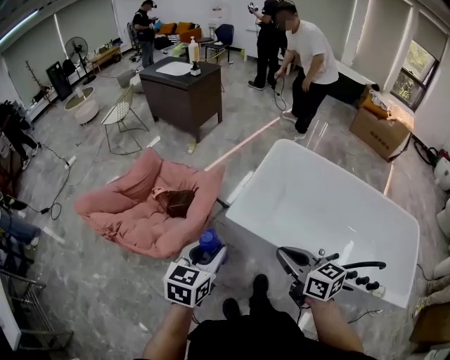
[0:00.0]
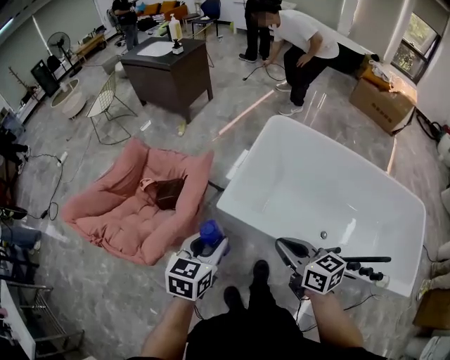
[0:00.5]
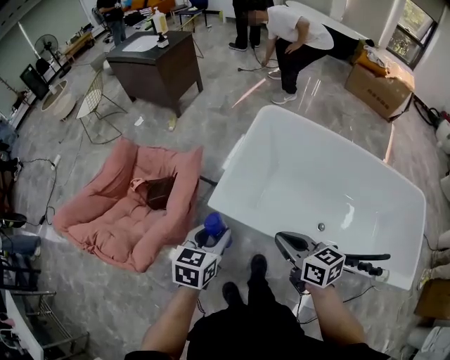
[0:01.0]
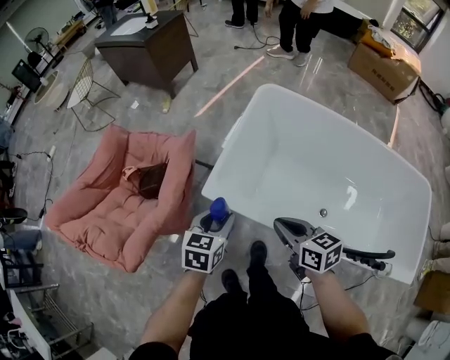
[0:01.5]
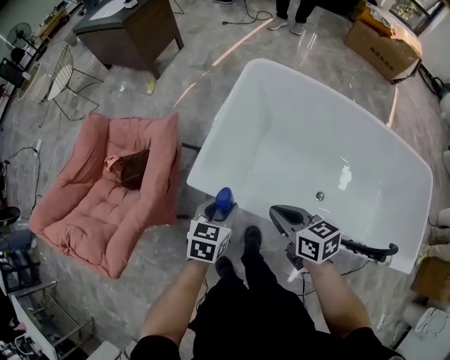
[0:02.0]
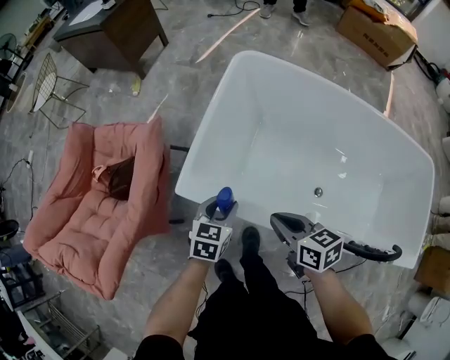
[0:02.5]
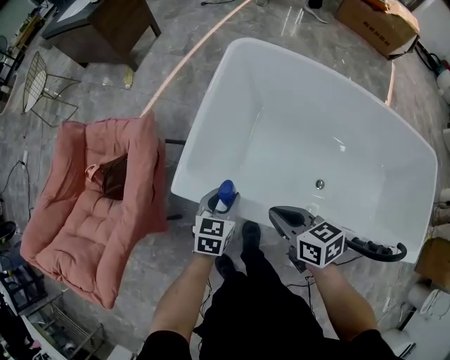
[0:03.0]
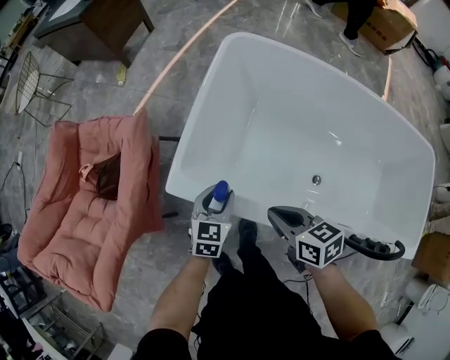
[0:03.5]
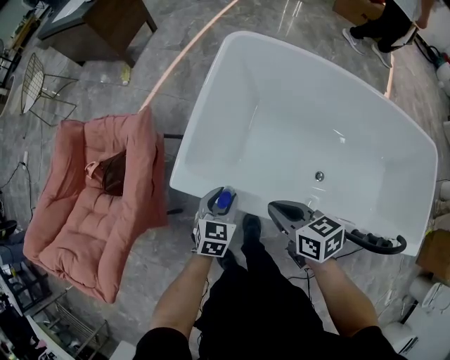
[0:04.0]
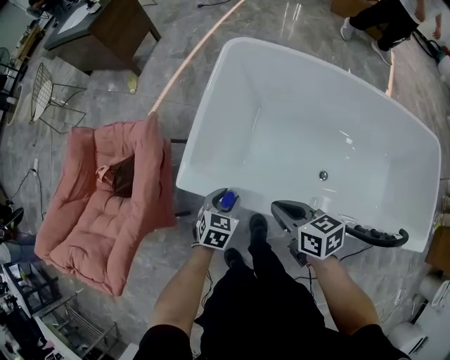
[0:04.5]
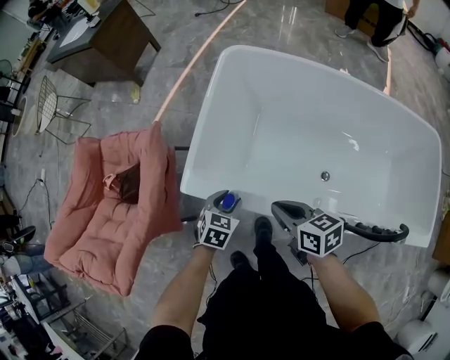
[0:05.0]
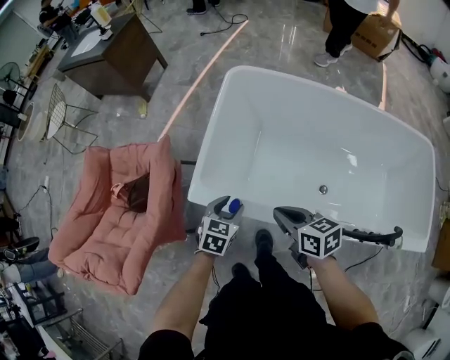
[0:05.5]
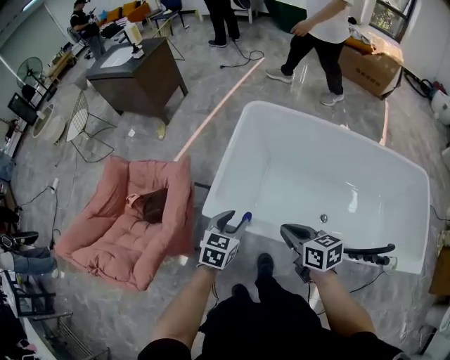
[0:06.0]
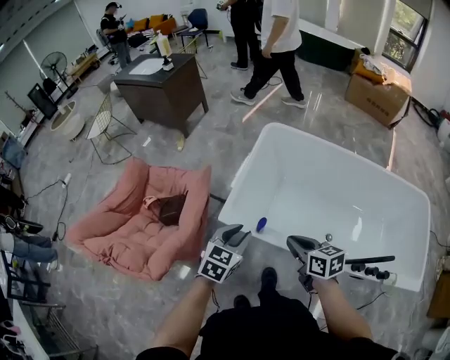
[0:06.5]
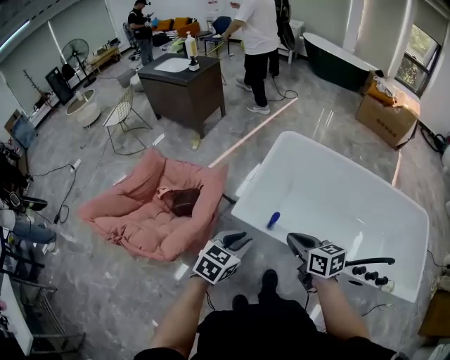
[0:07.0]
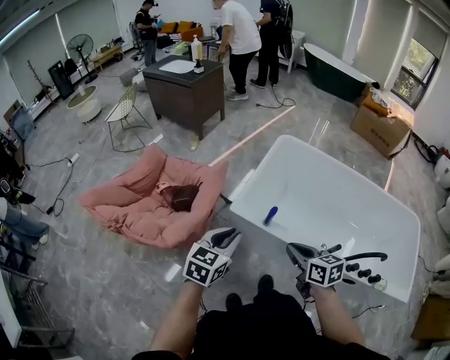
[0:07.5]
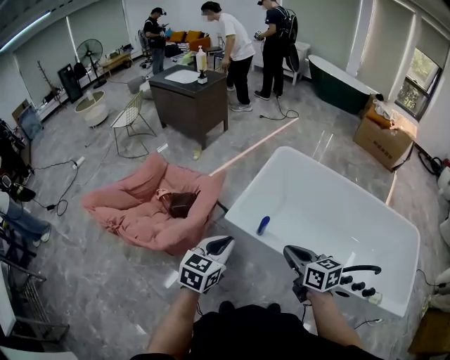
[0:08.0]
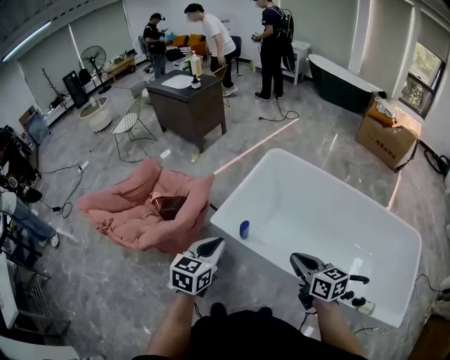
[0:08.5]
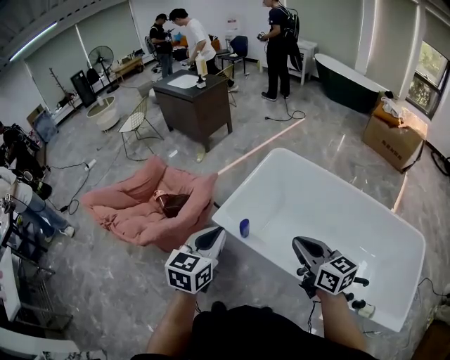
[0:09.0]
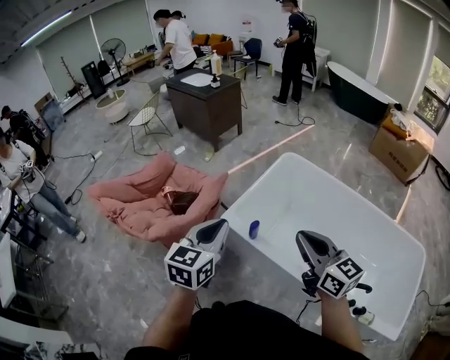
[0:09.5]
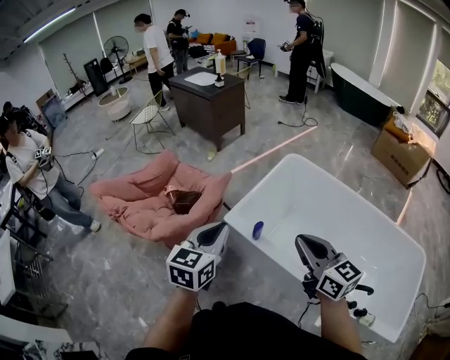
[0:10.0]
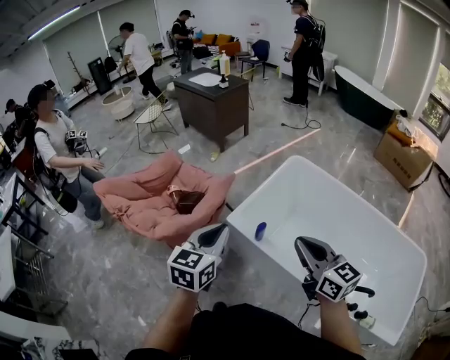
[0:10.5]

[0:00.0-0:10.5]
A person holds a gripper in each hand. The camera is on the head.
0:00.0 to 0:02.0: The right gripper goes roughly 25 cm downward, forward and to the right; the left gripper travels downward, to the right and forward by approximately 35 cm.
0:02.0 to 0:04.0: The left gripper is displaced downward by roughly 10 cm. The right gripper travels downward by about 5 cm.
0:04.0 to 0:06.5: The right gripper travels upward and backward by about 15 cm. The left gripper moves upward, roughly 25 cm.
0:06.5 to 0:08.5: The right gripper goes some 15 cm to the right, backward and upward, while the left gripper travels upward and backward by approximately 15 cm, changes its angle by about 20 degrees, and closes its fingers.
0:08.5 to 0:10.5: The left gripper moves upward, roughly 10 cm; the right gripper heads upward and to the left, covering some 15 cm, and swivels some 20 degrees.

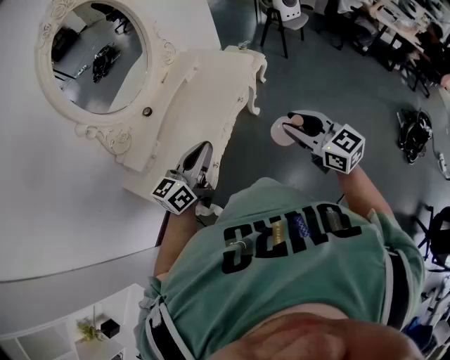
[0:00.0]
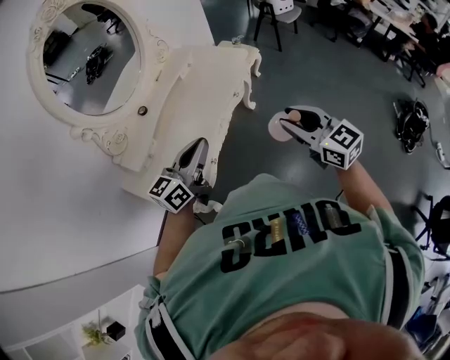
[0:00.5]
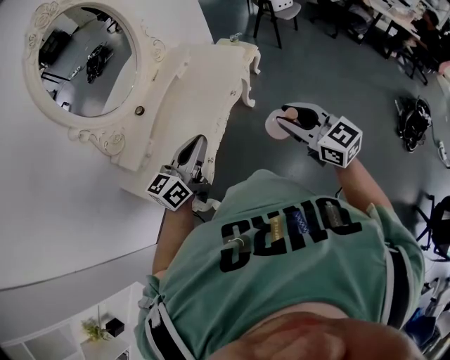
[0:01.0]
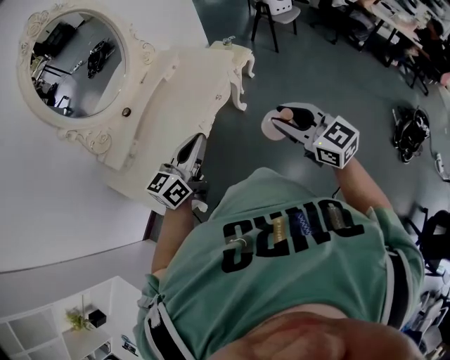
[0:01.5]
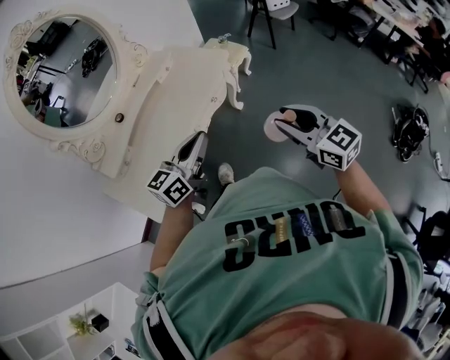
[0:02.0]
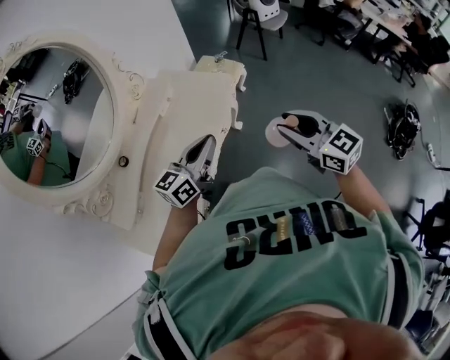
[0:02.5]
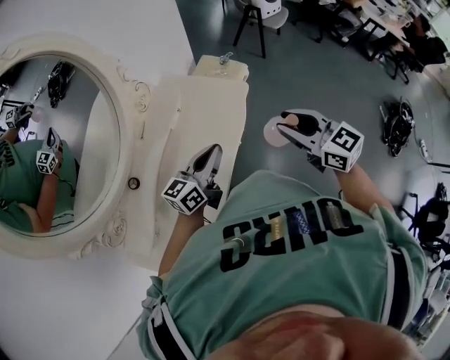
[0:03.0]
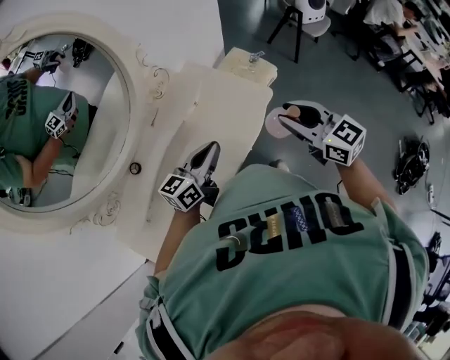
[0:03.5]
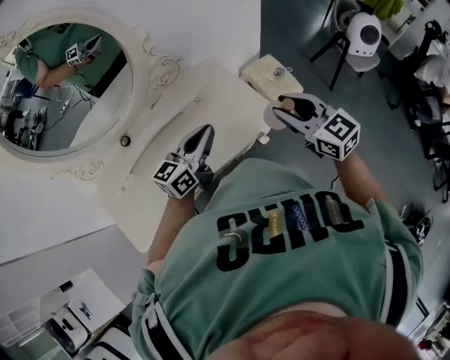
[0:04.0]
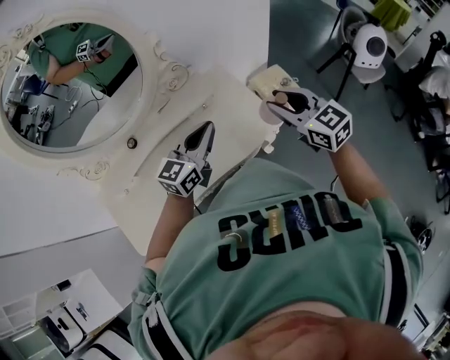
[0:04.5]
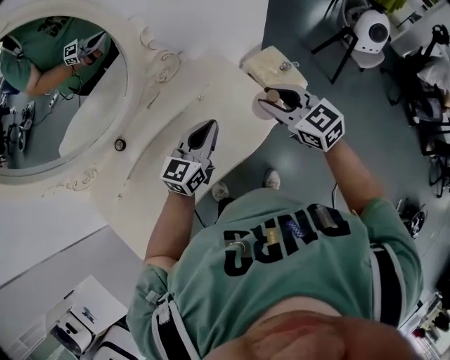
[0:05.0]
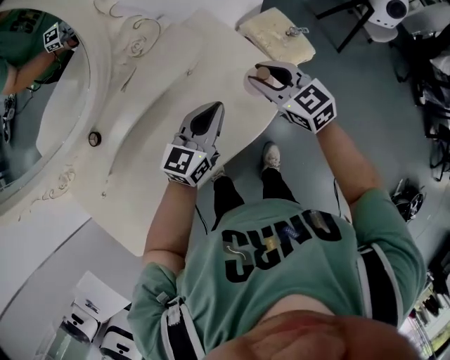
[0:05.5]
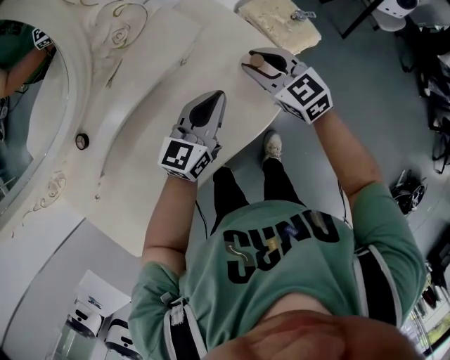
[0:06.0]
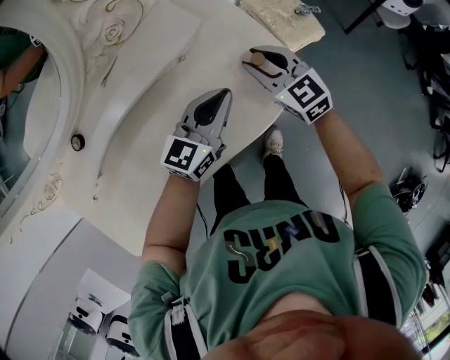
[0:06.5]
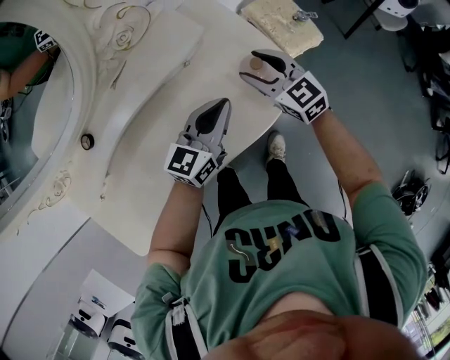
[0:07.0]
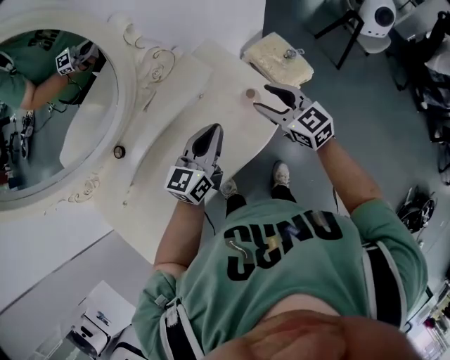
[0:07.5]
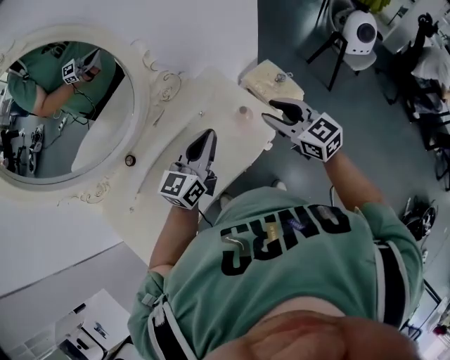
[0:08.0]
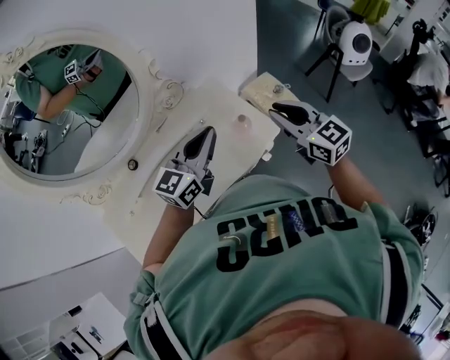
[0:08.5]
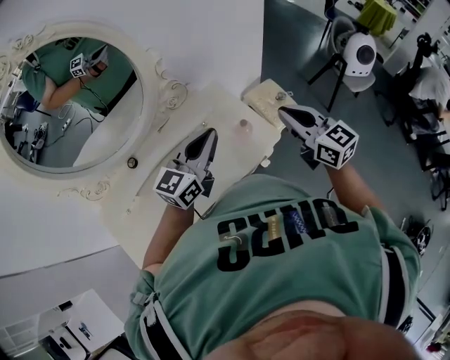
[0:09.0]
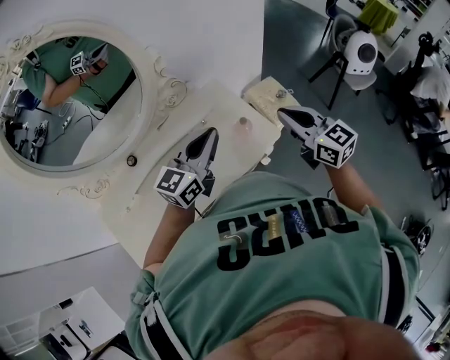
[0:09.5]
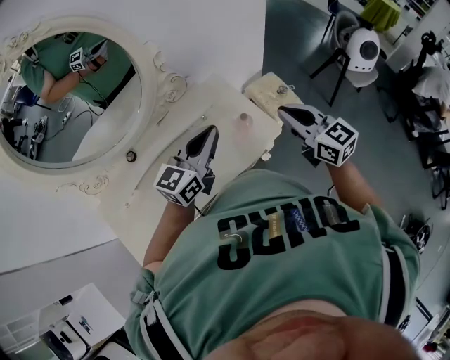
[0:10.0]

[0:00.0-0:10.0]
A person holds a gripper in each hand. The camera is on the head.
0:00.0 to 0:02.0: The left gripper heads to the right and forward, covering approximately 15 cm. The right gripper travels to the right by roughly 10 cm.
0:02.0 to 0:04.0: The pair of grippers is taken about 50 cm. The left gripper rotates some 20 degrees. Meanwhile the right gripper turns by some 20 degrees.
0:04.0 to 0:06.0: Both grippers move downward and forward, roughly 30 cm.
0:06.0 to 0:08.0: The left gripper heads upward, covering some 20 cm. The right gripper travels upward and backward by roughly 25 cm.
0:08.0 to 0:10.0: The right gripper heads upward, covering about 5 cm, and closes its fingers.

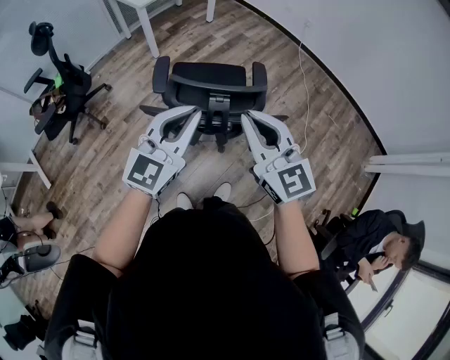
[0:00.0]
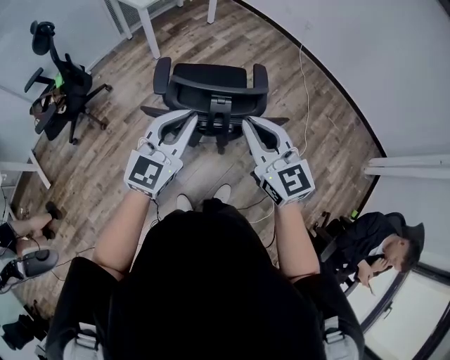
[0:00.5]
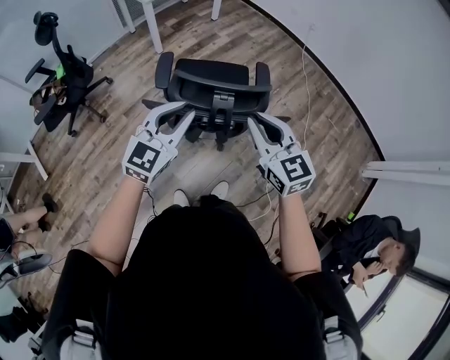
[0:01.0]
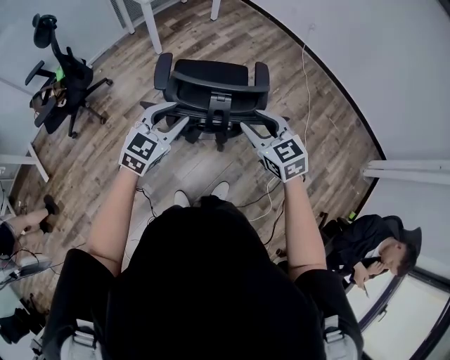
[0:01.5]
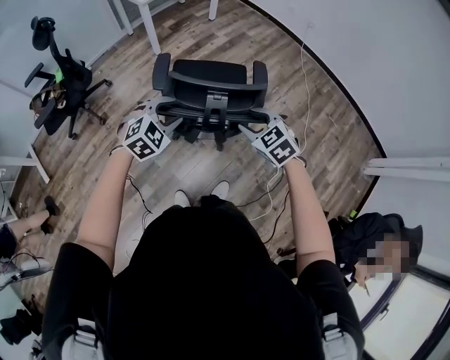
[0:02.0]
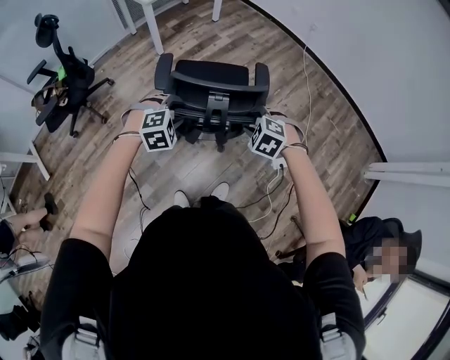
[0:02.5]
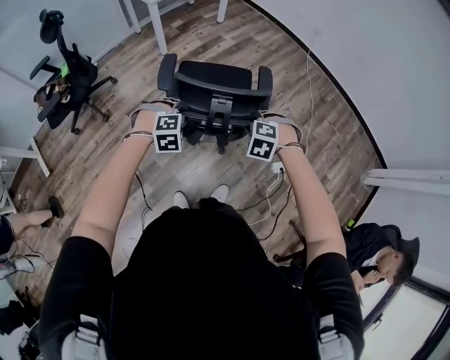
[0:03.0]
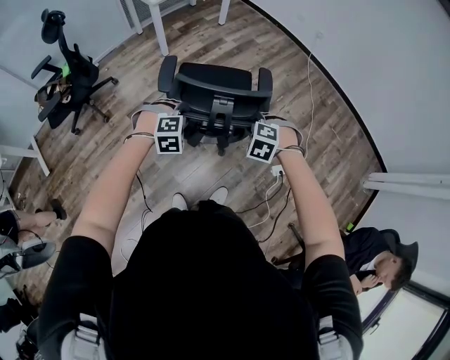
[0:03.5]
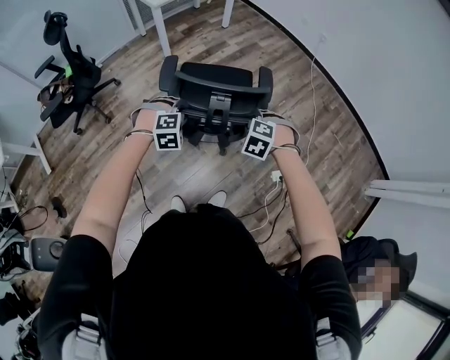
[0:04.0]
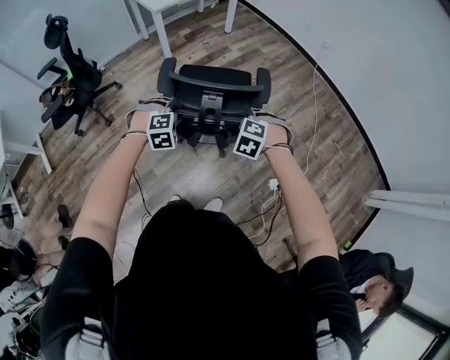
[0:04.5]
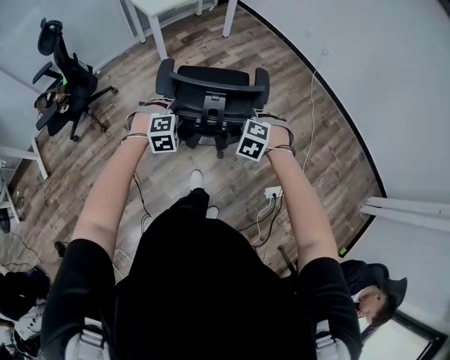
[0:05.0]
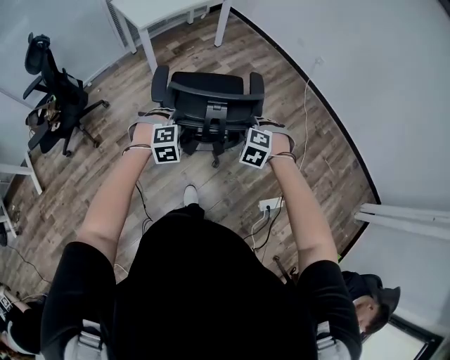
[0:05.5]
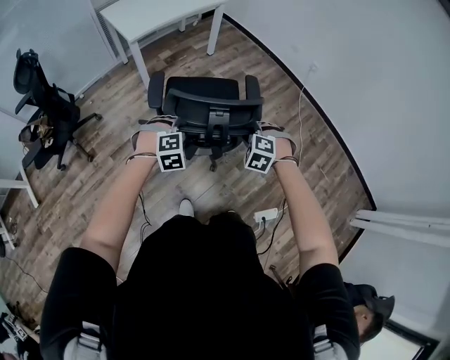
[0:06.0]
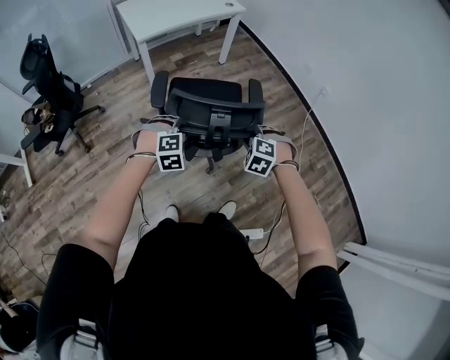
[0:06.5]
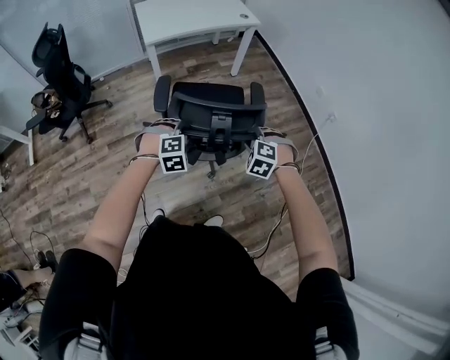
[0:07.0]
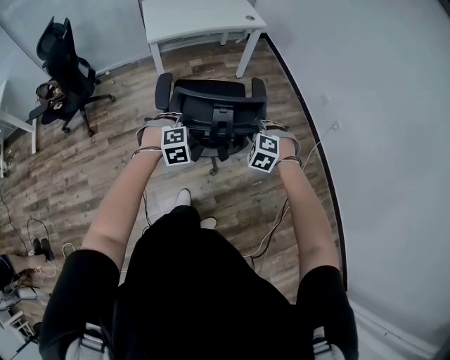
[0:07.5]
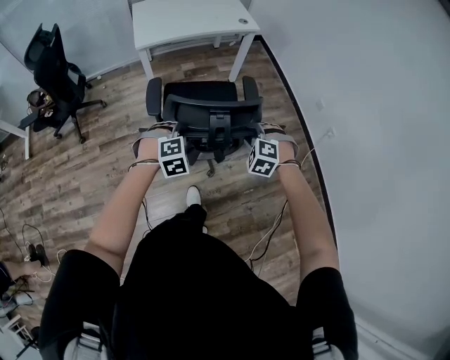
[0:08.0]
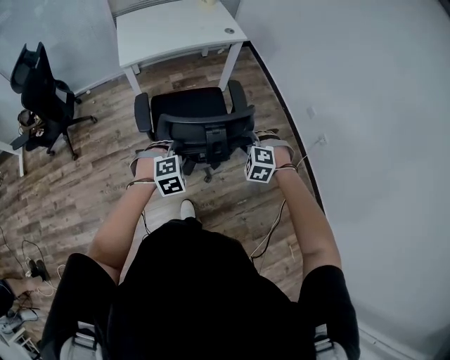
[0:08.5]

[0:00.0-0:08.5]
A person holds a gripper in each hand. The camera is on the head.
0:00.0 to 0:02.0: Both grippers travel together downward, approximately 20 cm. The left gripper angles its fingers downward, by about 40 degrees, and opens, while the right gripper tips its fingers downward by approximately 40 degrees, and opens its fingers.
0:02.0 to 0:04.0: The left gripper moves downward, about 5 cm, and rotates some 30 degrees. The right gripper shifts approximately 10 cm downward and forward, and turns by about 40 degrees.
0:04.0 to 0:06.5: Both grippers travel together forward, about 35 cm.
0:06.5 to 0:08.5: The left gripper is displaced to the right and forward by approximately 25 cm, and turns by about 20 degrees. Meanwhile the right gripper heads forward and to the right, covering roughly 30 cm, and changes its angle by roughly 20 degrees.
